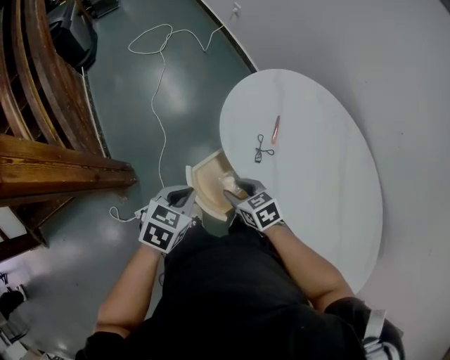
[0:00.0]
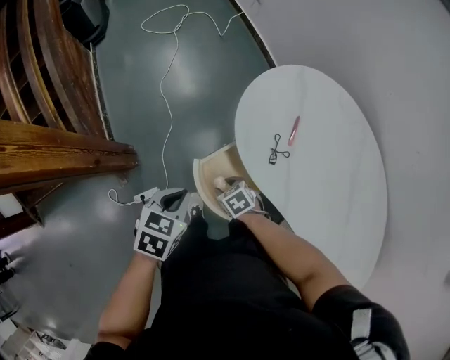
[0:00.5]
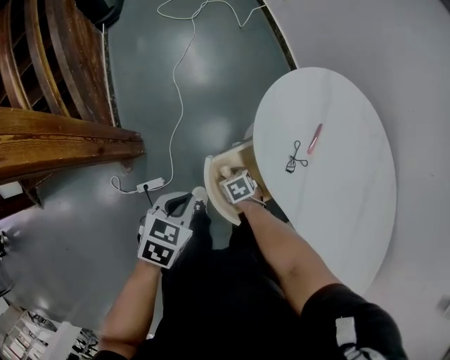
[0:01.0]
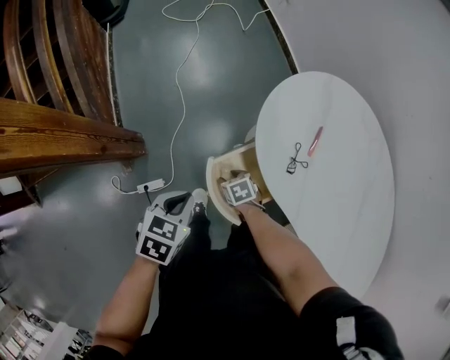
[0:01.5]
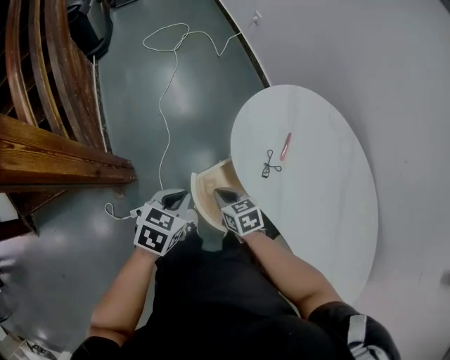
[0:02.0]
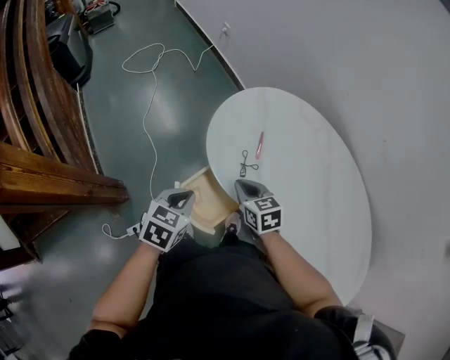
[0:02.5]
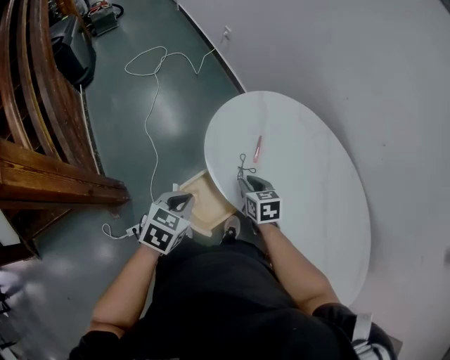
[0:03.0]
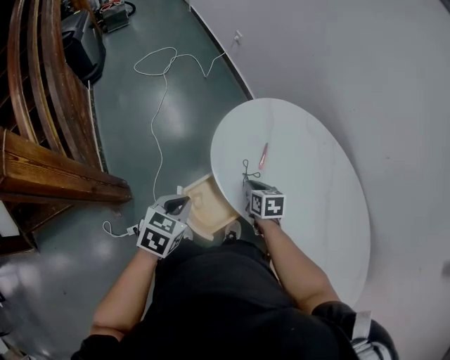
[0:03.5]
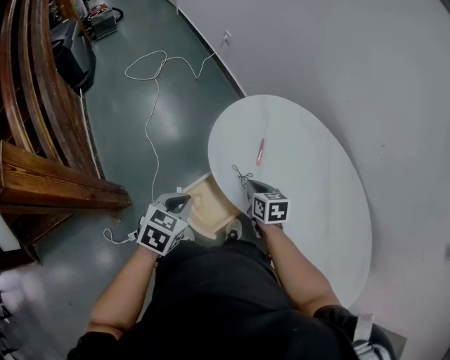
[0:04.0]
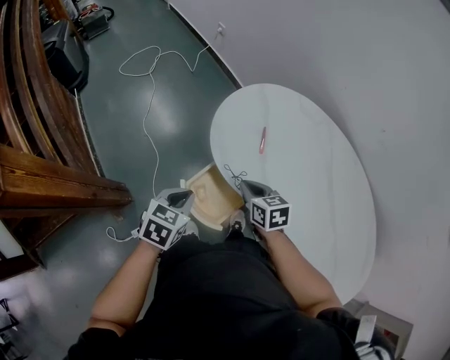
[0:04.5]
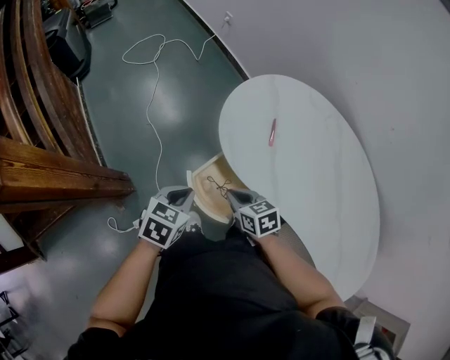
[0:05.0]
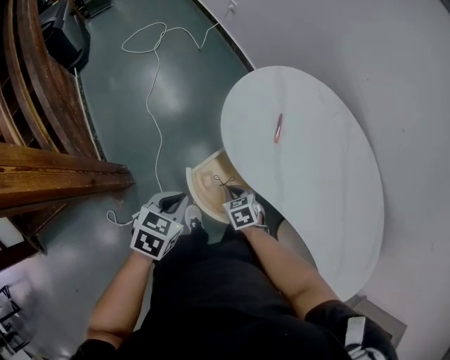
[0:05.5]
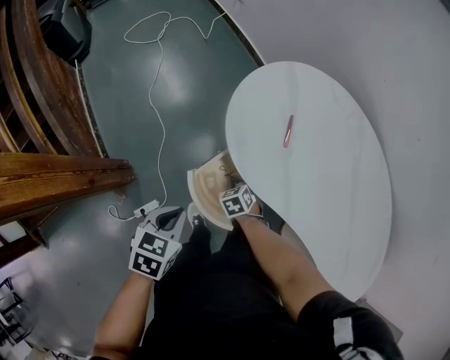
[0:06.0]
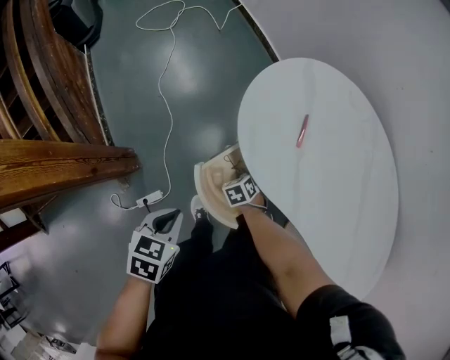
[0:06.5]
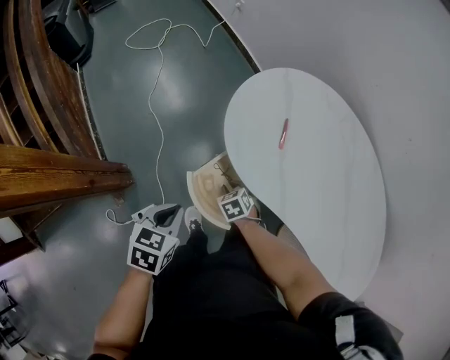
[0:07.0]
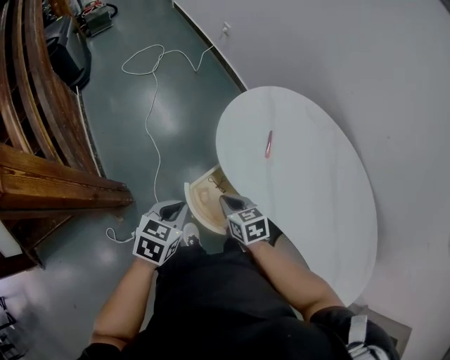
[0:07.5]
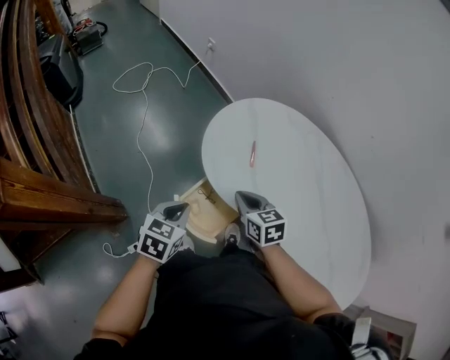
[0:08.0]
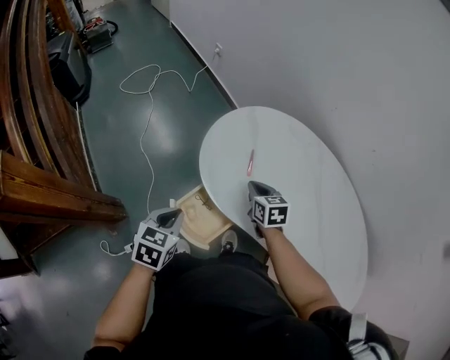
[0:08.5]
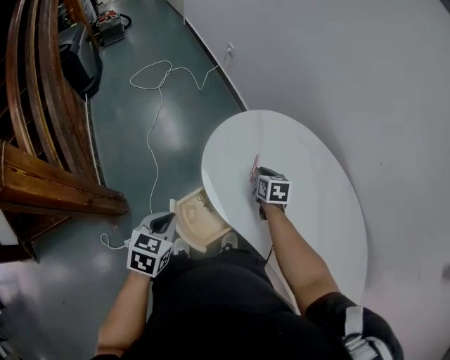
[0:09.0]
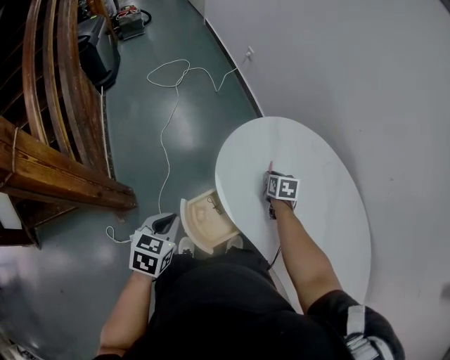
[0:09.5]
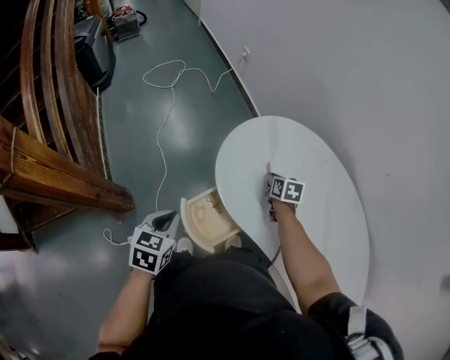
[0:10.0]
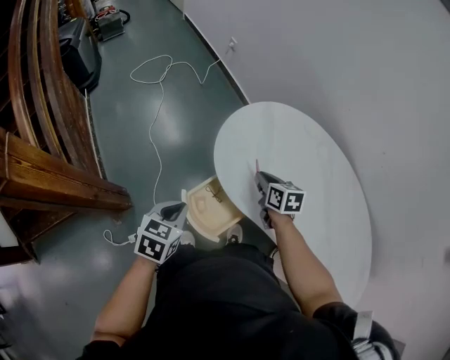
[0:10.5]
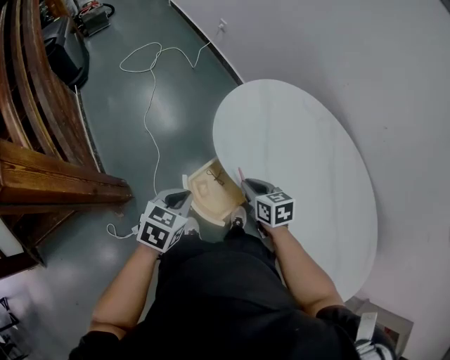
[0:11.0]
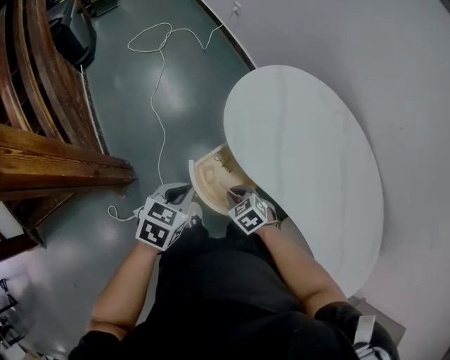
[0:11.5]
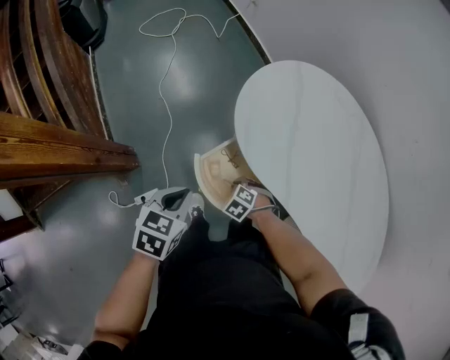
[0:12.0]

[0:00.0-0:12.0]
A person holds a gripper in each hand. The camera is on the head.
0:00.0 to 0:02.0: The right gripper shifts roughly 5 cm to the left, moves about 20 cm downward and comes back, and closes up.
0:02.0 to 0:04.0: The right gripper is displaced to the right and forward by roughly 20 cm, and changes its angle by about 30 degrees. The left gripper travels to the right by about 5 cm.
0:04.0 to 0:06.0: The left gripper shifts about 10 cm downward, to the left and backward, while the right gripper heads downward and to the left, covering roughly 25 cm, and rotates approximately 30 degrees.
0:06.0 to 0:08.0: The right gripper shifts approximately 25 cm upward, and swivels approximately 30 degrees; the left gripper moves upward, about 5 cm.
0:08.0 to 0:10.0: The right gripper shifts some 20 cm forward, to the right and downward.
0:10.0 to 0:12.0: The right gripper shifts by about 35 cm, and rotates around the line of its fingers by roughly 60 degrees, counterclockwise from behind. The left gripper moves about 5 cm.

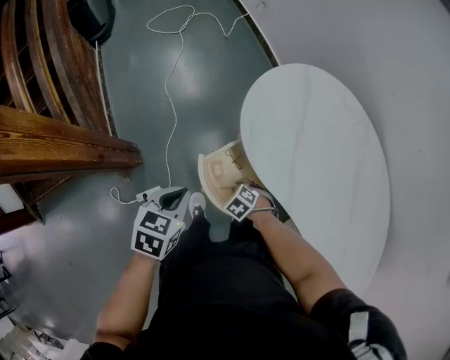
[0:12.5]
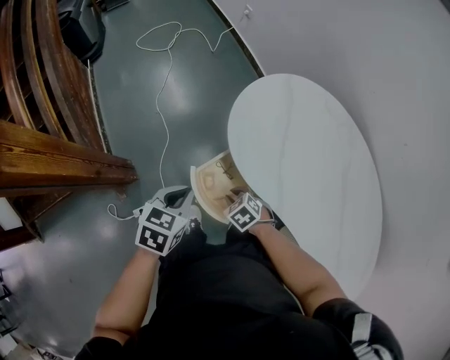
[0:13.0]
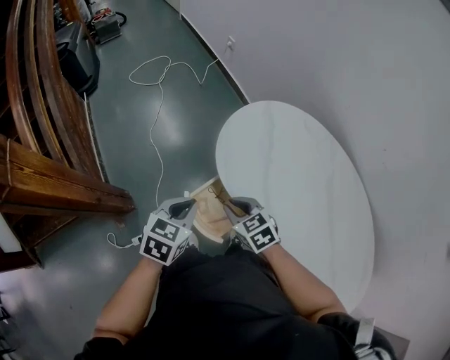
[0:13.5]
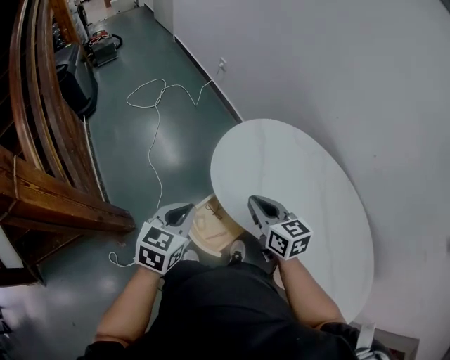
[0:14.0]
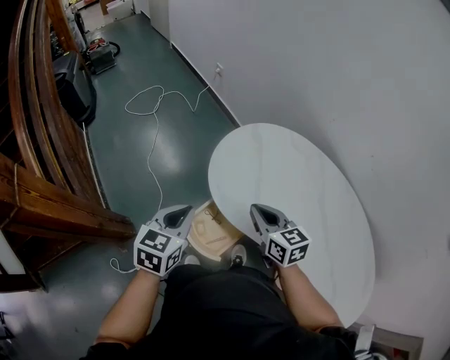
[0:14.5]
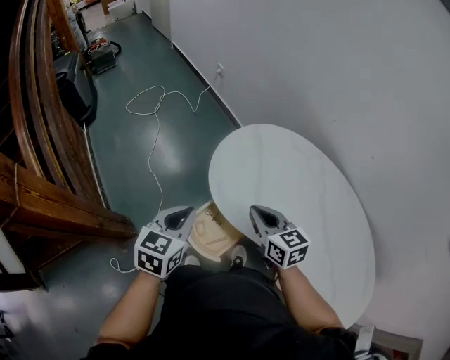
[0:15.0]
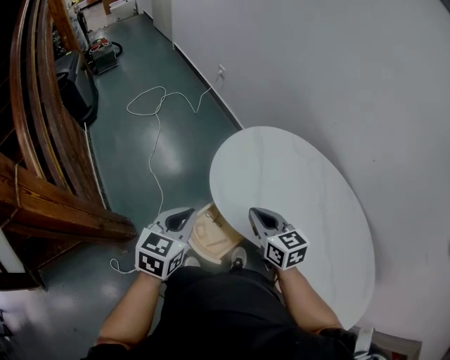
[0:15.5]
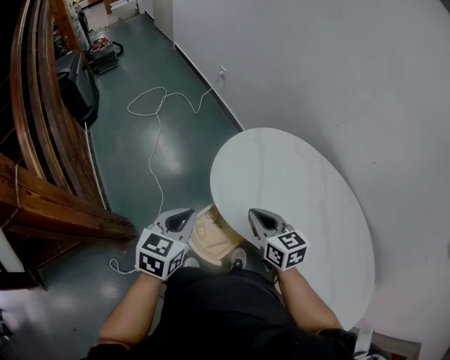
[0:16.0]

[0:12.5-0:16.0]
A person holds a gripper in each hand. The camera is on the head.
0:12.5 to 0:14.5: The right gripper shifts about 35 cm upward, and angles its fingers upward, by about 50 degrees, while the left gripper shifts about 15 cm upward, and rotates about 20 degrees.
0:14.5 to 0:16.0: Both grippers stay put.

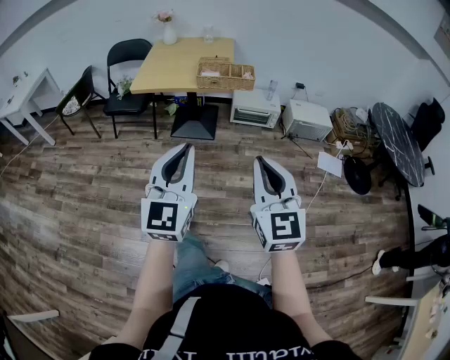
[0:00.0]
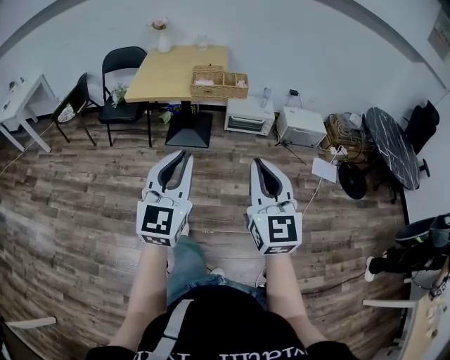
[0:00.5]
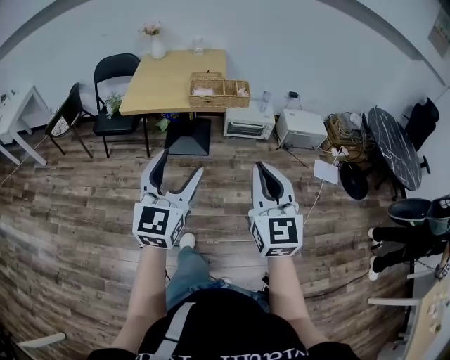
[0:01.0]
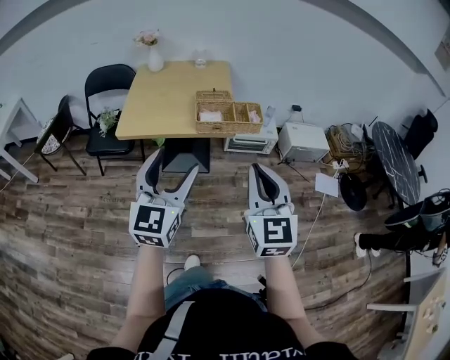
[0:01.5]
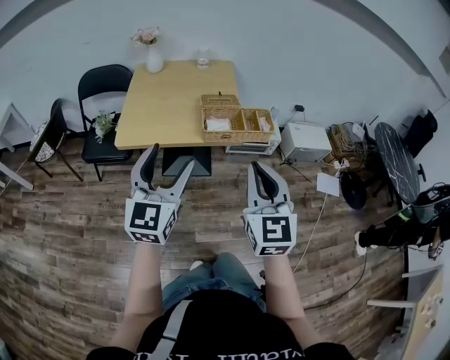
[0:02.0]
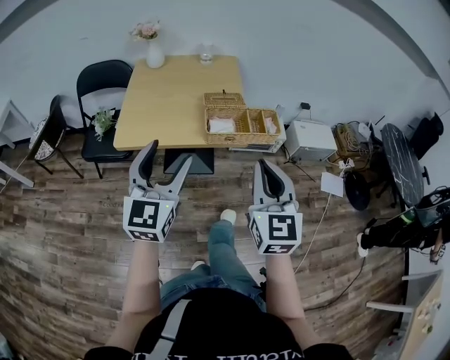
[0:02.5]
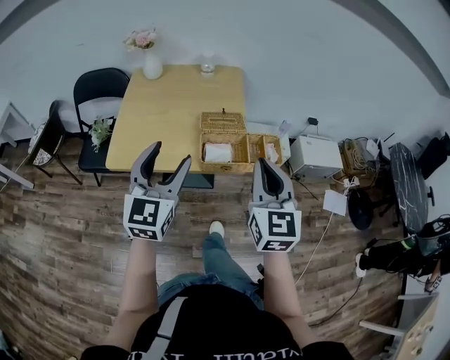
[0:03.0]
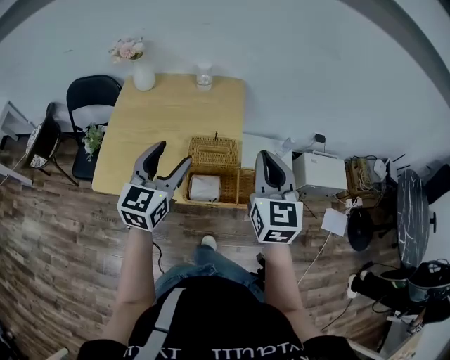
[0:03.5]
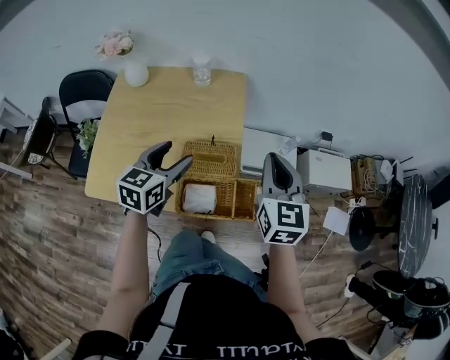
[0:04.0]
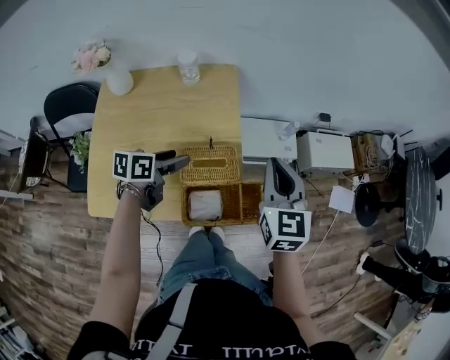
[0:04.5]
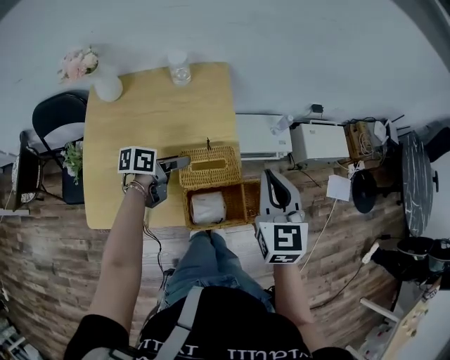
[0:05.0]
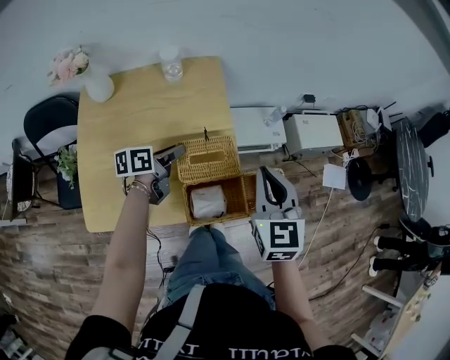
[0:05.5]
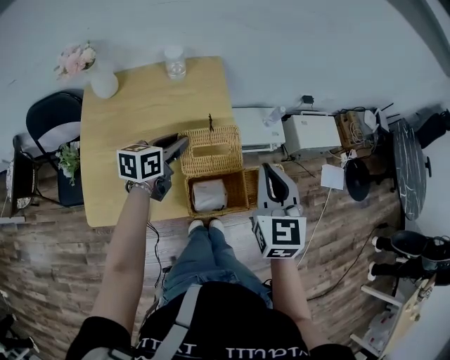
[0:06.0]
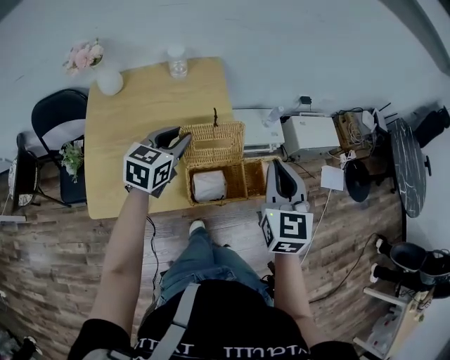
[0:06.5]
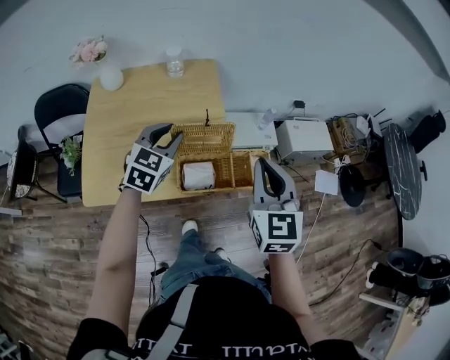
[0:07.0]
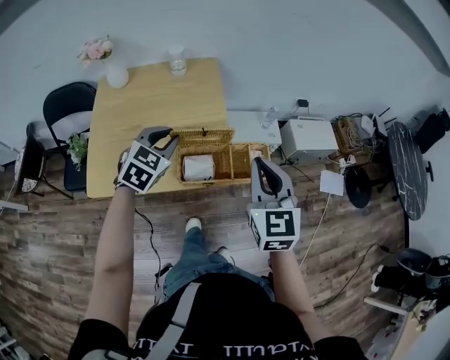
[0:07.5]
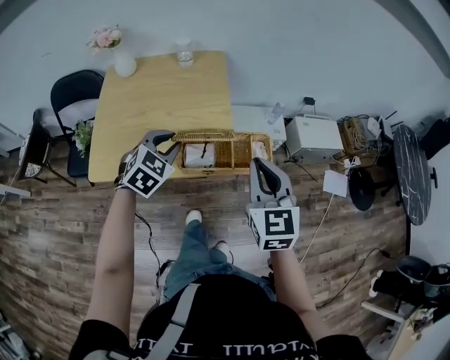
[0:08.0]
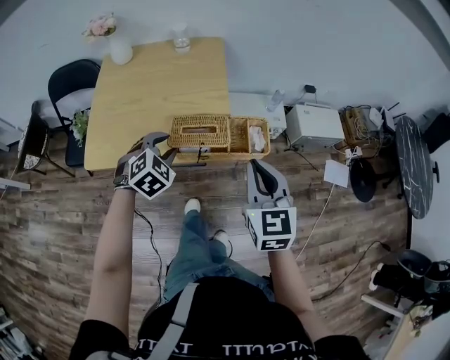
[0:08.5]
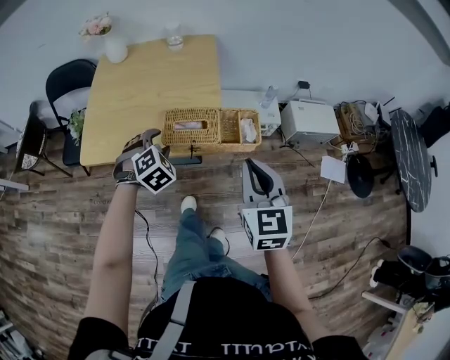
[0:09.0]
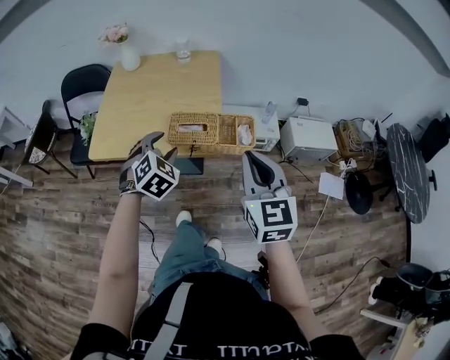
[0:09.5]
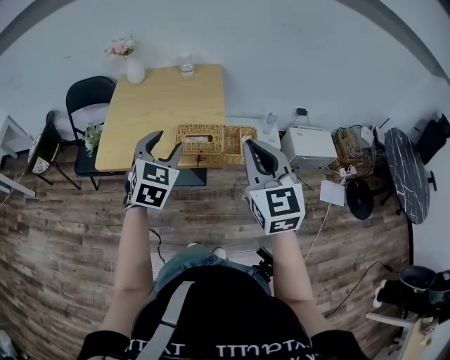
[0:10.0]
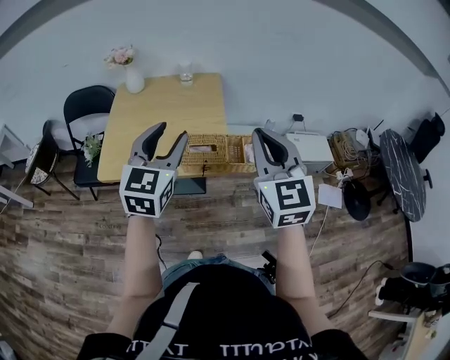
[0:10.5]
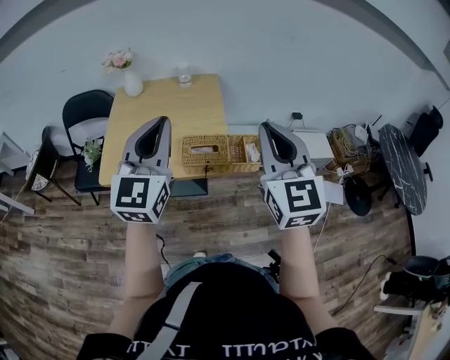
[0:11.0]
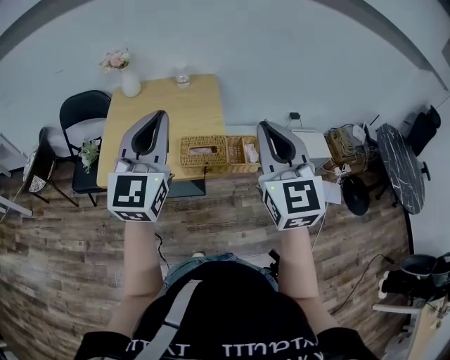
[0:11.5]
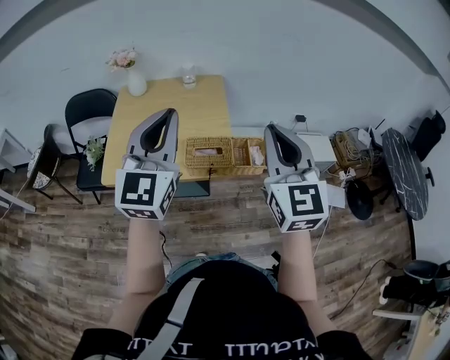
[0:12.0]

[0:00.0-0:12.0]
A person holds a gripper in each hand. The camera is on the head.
0:00.0 to 0:02.0: The grippers both shift forward and to the left by about 40 cm. The left gripper opens.
0:02.0 to 0:04.0: Both grippers are carried forward, roughly 40 cm. The left gripper turns by some 30 degrees.
0:04.0 to 0:06.0: The left gripper travels forward and downward by about 10 cm, changes its angle by some 30 degrees, and closes up. The right gripper heads backward, covering some 5 cm.
0:06.0 to 0:08.0: The right gripper is displaced backward and to the right by approximately 15 cm; the left gripper travels backward by about 15 cm, and rolls clockwise, seen from behind, by about 50 degrees.
0:08.0 to 0:10.0: The right gripper shifts about 10 cm upward and backward. The left gripper moves backward and upward, roughly 15 cm, changes its angle by some 20 degrees, and opens its fingers.
0:10.0 to 0:12.0: The right gripper goes roughly 10 cm upward; the left gripper shifts some 20 cm upward, points its fingers some 40 degrees further upward, and closes up.
